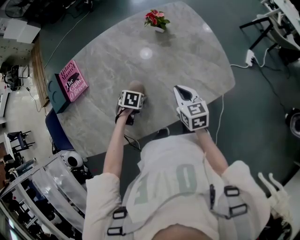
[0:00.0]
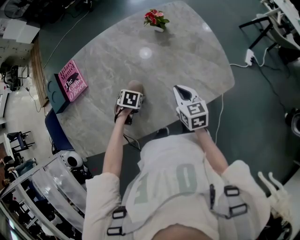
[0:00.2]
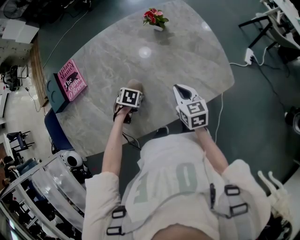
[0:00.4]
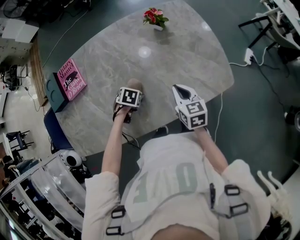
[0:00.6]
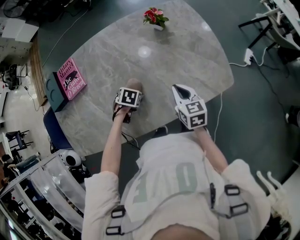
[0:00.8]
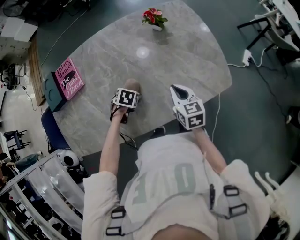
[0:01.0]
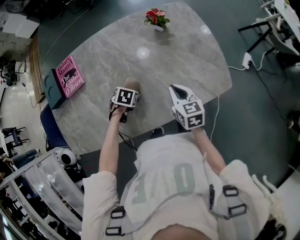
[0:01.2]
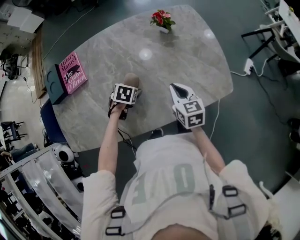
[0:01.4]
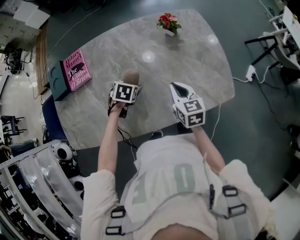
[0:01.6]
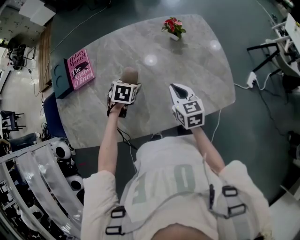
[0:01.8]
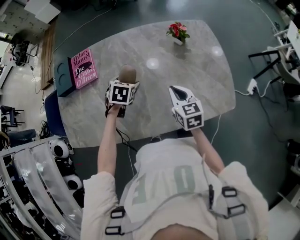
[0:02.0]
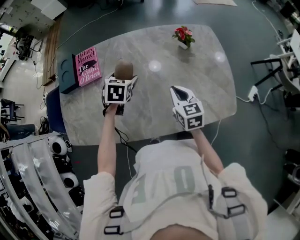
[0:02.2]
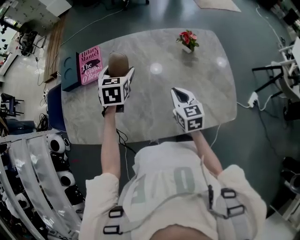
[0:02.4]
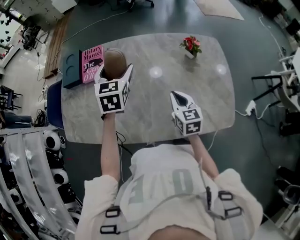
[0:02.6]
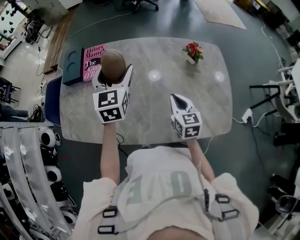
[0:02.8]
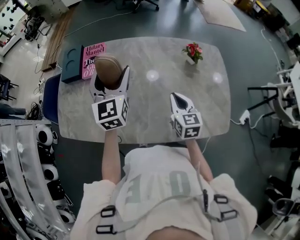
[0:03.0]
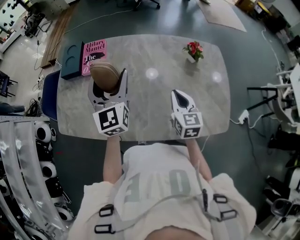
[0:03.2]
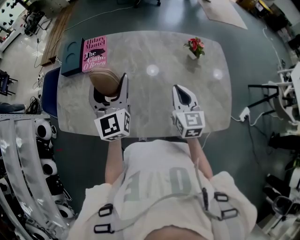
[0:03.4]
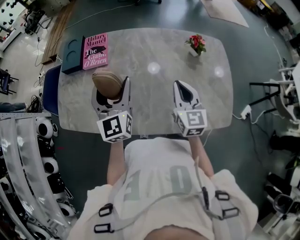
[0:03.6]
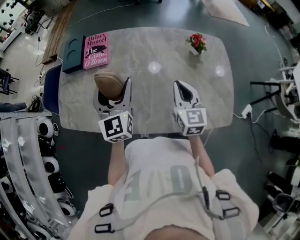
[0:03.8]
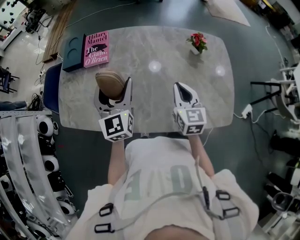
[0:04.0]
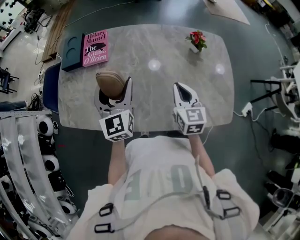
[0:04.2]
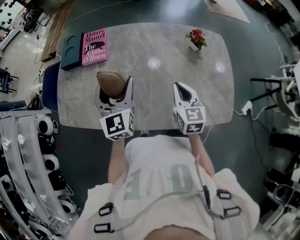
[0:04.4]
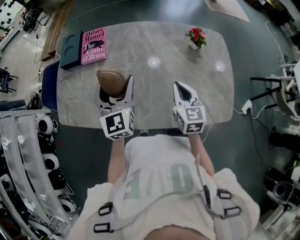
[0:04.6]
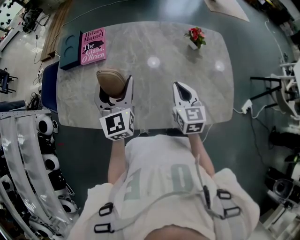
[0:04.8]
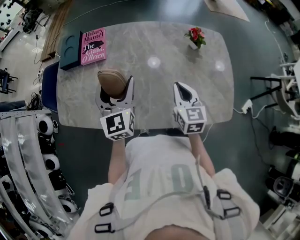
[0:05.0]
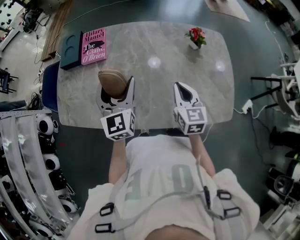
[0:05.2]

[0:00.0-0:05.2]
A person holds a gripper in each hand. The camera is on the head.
0:00.0 to 0:01.8: The left gripper moves upward, about 10 cm. Meanwhile the right gripper changes place by approximately 5 cm.
0:01.8 to 0:03.4: The left gripper goes some 25 cm upward and to the left, and angles its fingers upward, by some 60 degrees; the right gripper moves upward, some 10 cm.
0:03.4 to 0:05.2: The left gripper shifts by some 5 cm.

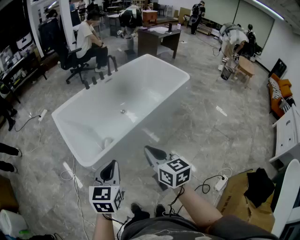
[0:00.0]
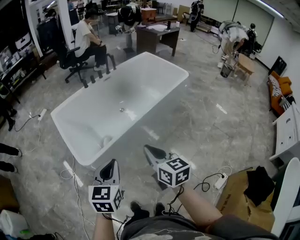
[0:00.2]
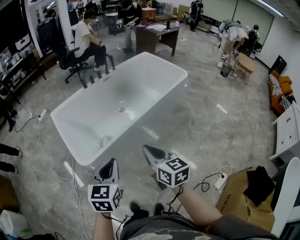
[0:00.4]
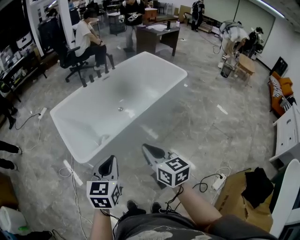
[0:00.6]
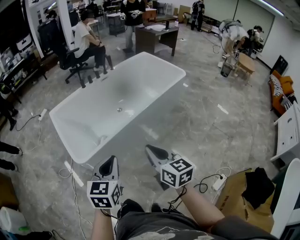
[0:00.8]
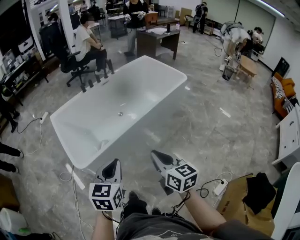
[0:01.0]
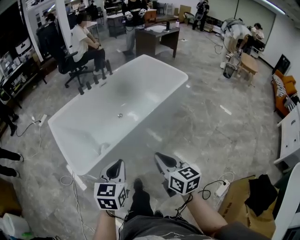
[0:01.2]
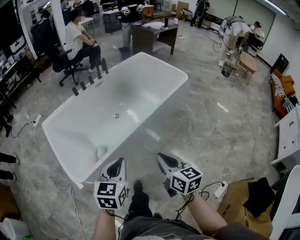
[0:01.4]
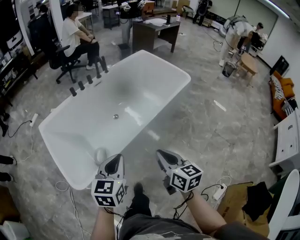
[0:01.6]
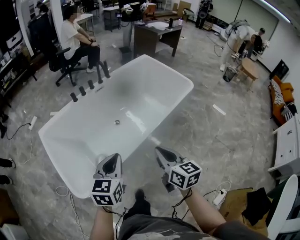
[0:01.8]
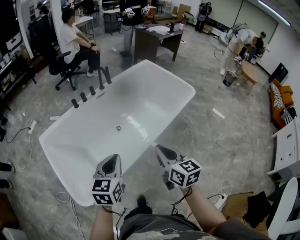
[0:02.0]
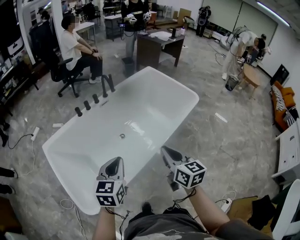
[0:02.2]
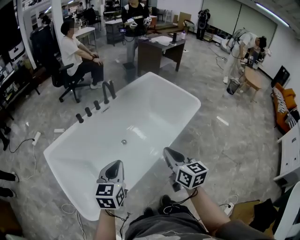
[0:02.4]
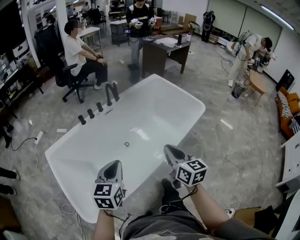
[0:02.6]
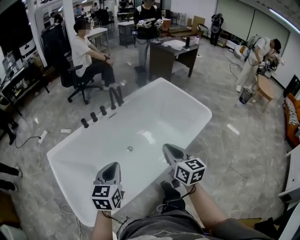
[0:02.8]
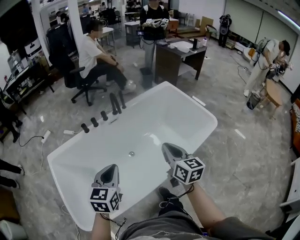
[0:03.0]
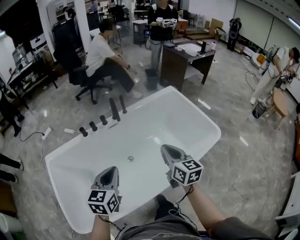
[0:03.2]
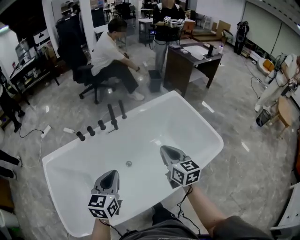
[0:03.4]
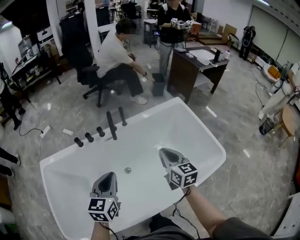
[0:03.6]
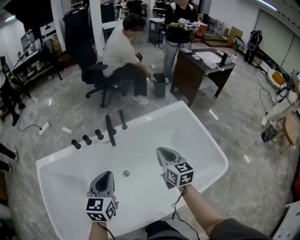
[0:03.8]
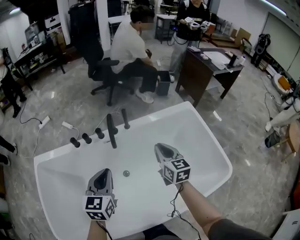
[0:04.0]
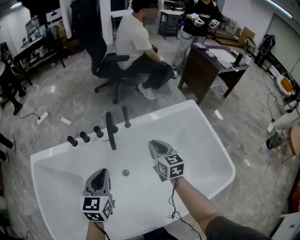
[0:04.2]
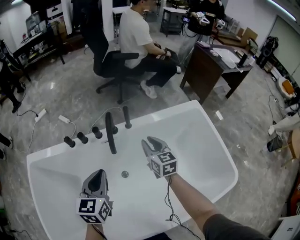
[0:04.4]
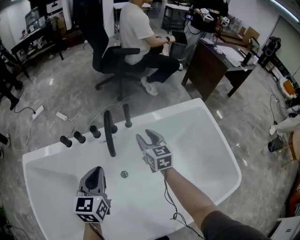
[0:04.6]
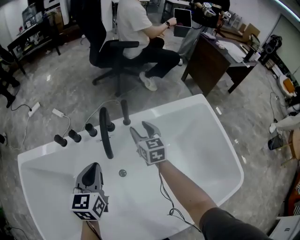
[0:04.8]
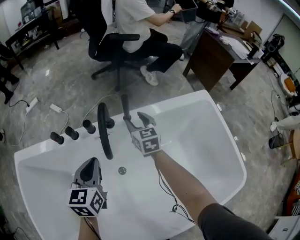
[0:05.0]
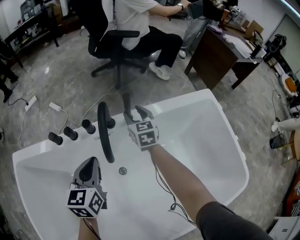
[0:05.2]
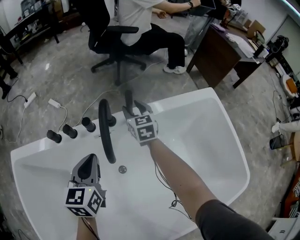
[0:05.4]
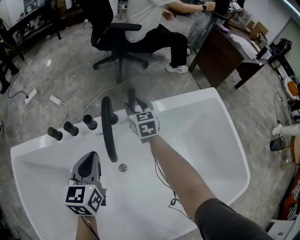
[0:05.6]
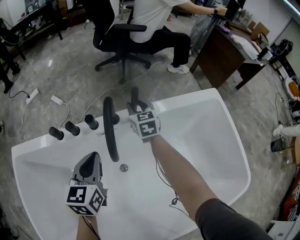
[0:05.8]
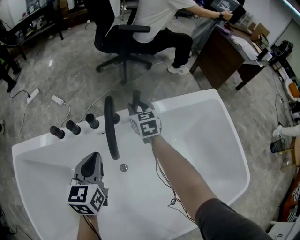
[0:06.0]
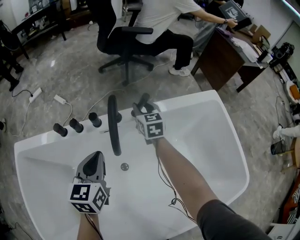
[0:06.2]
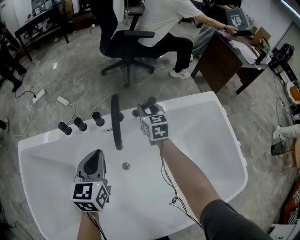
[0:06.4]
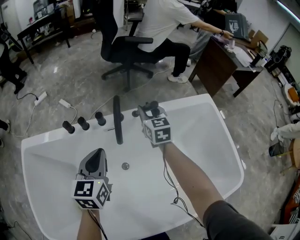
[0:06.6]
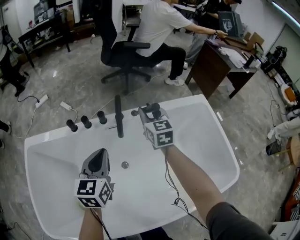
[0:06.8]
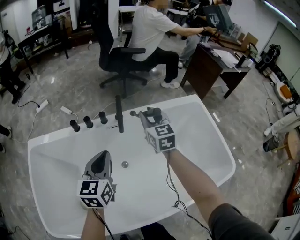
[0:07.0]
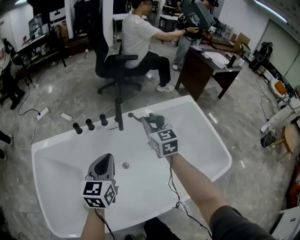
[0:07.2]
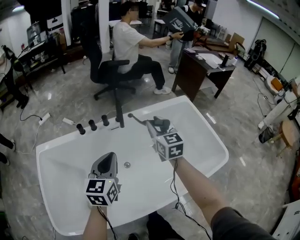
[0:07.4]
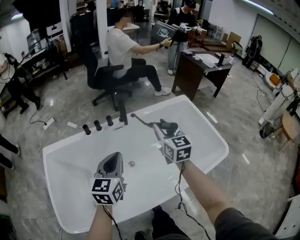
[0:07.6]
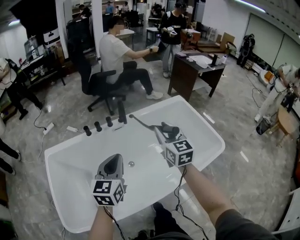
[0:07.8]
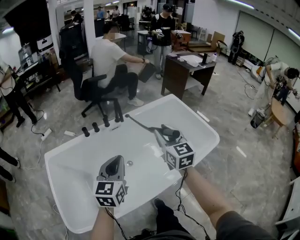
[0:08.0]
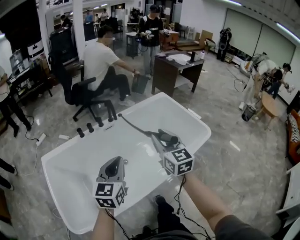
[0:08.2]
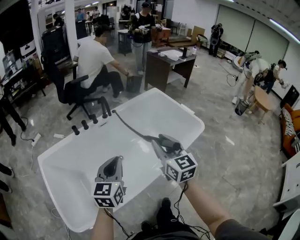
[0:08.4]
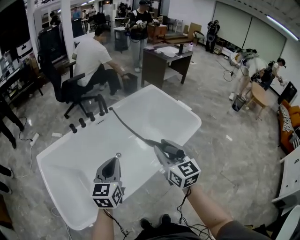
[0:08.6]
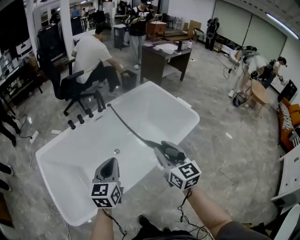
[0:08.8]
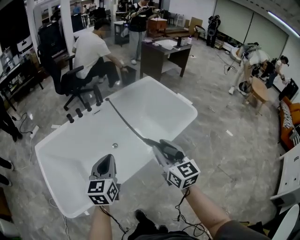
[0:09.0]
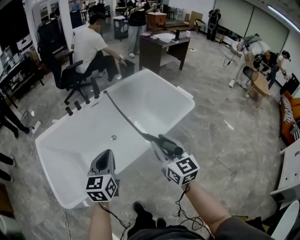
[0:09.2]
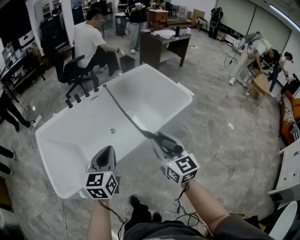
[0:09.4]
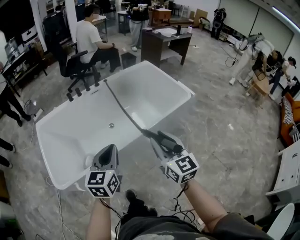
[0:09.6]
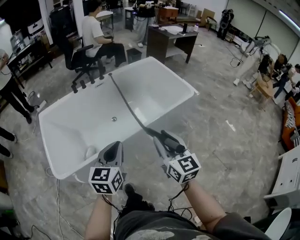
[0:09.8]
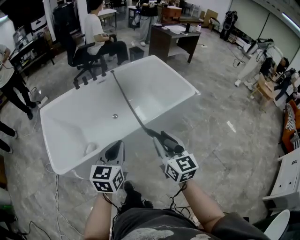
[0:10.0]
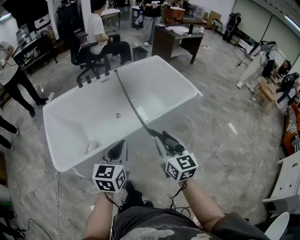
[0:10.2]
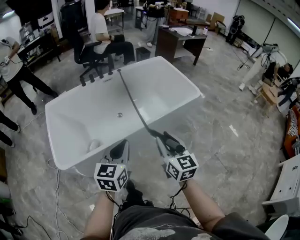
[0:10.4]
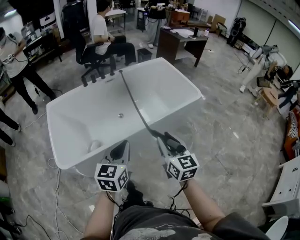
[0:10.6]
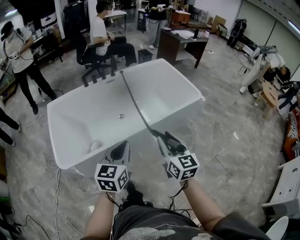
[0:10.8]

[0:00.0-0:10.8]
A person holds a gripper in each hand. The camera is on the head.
0:00.0 to 0:01.6: The two grippers go about 25 cm forward and to the right.
0:01.6 to 0:03.0: The grippers both shift forward by about 35 cm.
0:03.0 to 0:04.6: Both grippers travel together forward and downward, some 50 cm. The right gripper turns by roughly 30 degrees, and opens. Meanwhile the left gripper changes its angle by roughly 20 degrees.
0:04.6 to 0:06.2: The right gripper moves forward and downward, some 15 cm. The left gripper is displaced downward and forward by approximately 10 cm.
0:06.2 to 0:07.8: Both grippers travel together backward and upward, approximately 50 cm. The left gripper turns by about 20 degrees.
0:07.8 to 0:09.2: The right gripper goes some 35 cm backward. The left gripper heads backward, covering approximately 25 cm.
0:09.2 to 0:10.8: Both grippers move backward, some 15 cm.

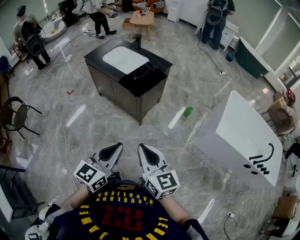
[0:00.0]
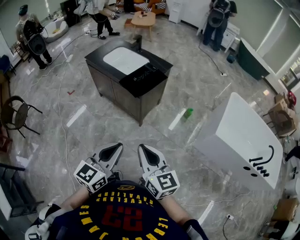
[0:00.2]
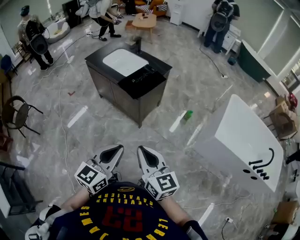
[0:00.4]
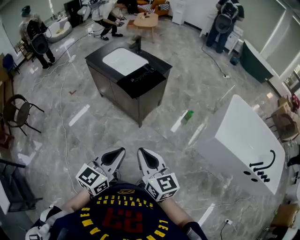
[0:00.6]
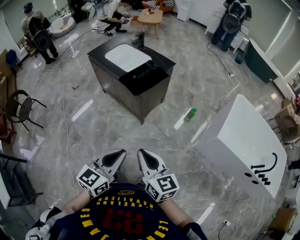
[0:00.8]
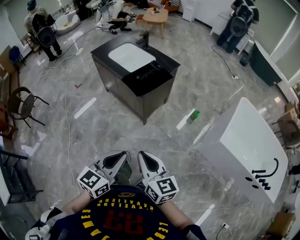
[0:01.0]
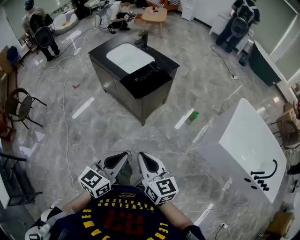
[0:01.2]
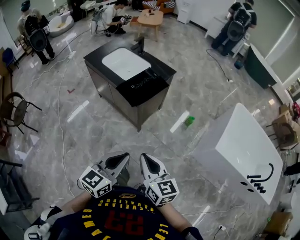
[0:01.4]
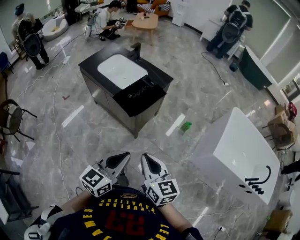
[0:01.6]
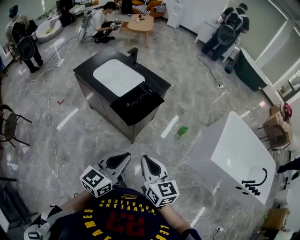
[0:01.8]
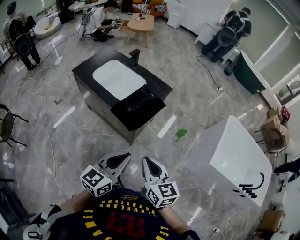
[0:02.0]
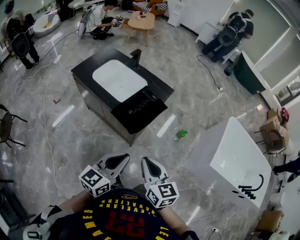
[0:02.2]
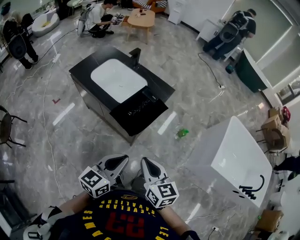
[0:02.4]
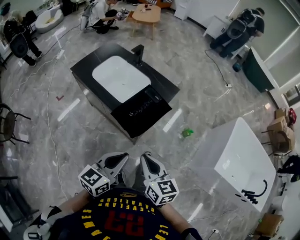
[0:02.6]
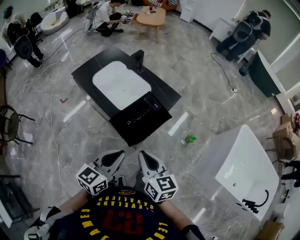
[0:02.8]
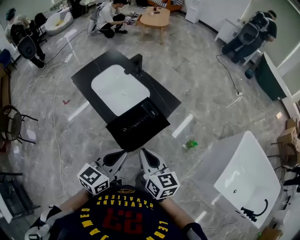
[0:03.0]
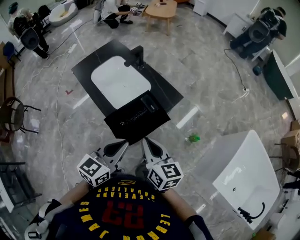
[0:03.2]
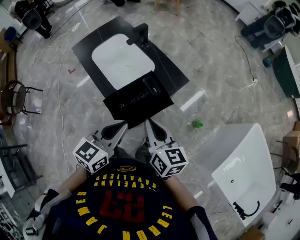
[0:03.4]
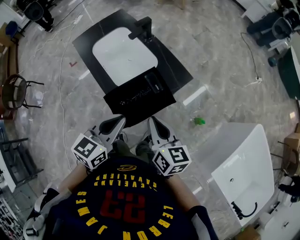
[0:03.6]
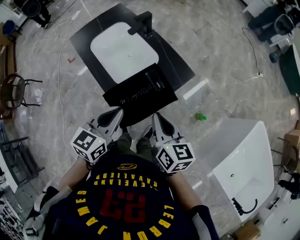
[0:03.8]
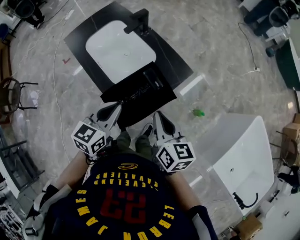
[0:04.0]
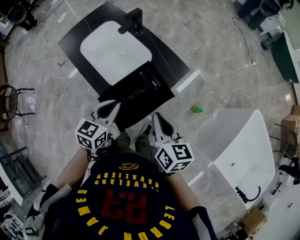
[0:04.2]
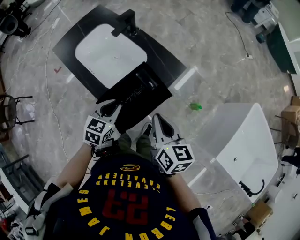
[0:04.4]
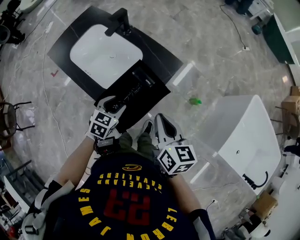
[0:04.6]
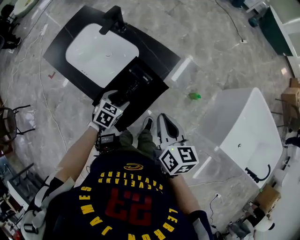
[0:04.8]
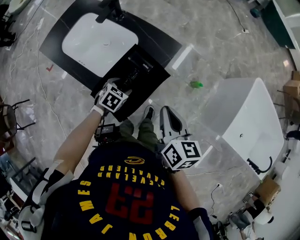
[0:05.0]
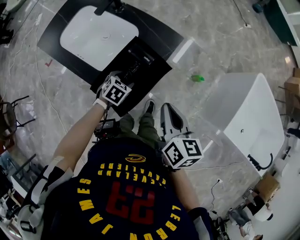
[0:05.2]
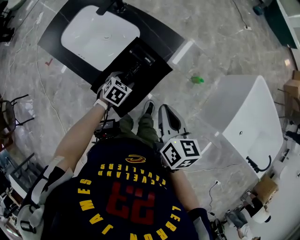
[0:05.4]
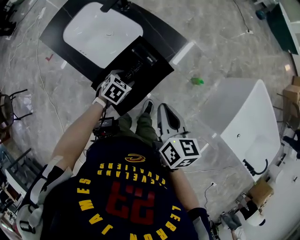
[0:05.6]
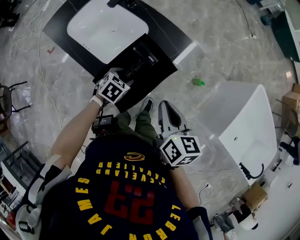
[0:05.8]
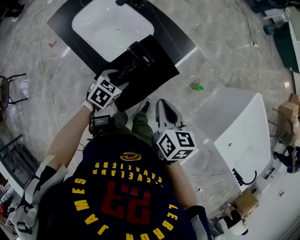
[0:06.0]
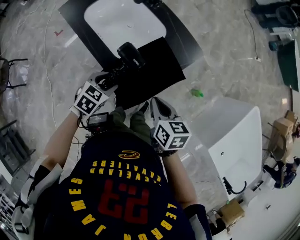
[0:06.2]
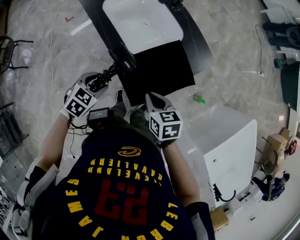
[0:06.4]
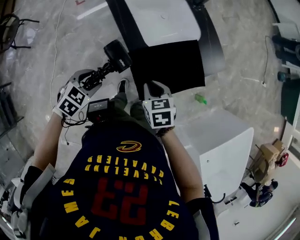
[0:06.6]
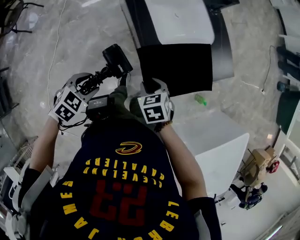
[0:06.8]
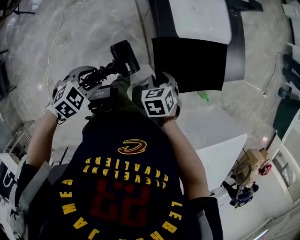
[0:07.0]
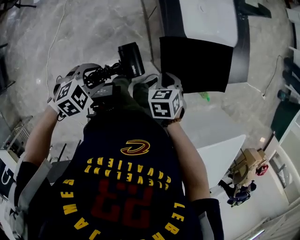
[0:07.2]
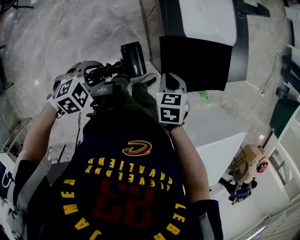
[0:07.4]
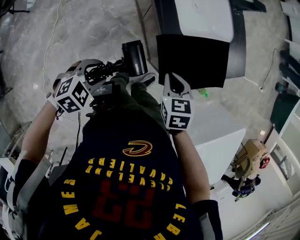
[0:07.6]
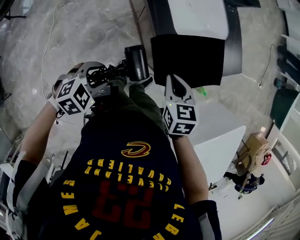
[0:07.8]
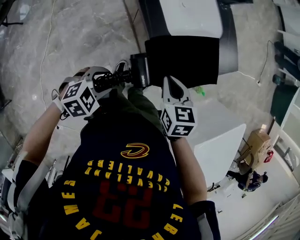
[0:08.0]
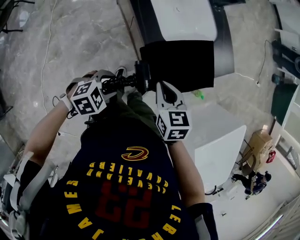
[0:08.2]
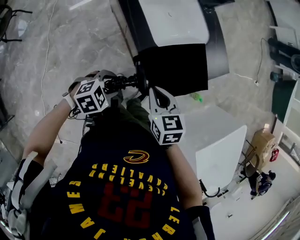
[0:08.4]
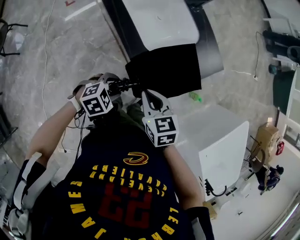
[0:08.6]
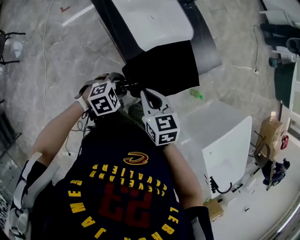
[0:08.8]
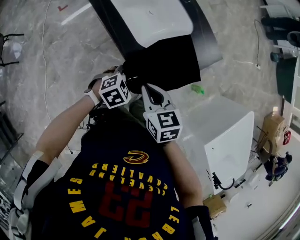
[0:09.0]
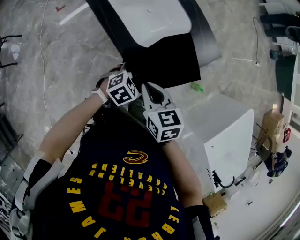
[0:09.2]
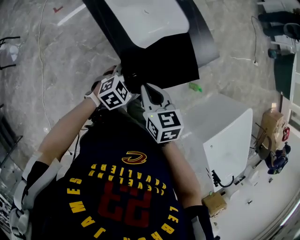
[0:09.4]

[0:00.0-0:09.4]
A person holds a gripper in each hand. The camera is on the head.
0:00.0 to 0:01.6: The two grippers go about 15 cm forward.
0:01.6 to 0:03.2: The grippers both shift forward by about 35 cm.
0:03.2 to 0:04.8: The left gripper moves downward and forward, roughly 30 cm, points its fingers approximately 40 degrees further downward, and opens. The right gripper shifts approximately 10 cm to the right, downward and forward, and turns by some 20 degrees.
0:04.8 to 0:06.2: The right gripper moves downward and to the left, roughly 10 cm, and turns by some 30 degrees; the left gripper shifts roughly 10 cm to the left and backward.
0:06.2 to 0:07.8: The left gripper is displaced backward, to the left and upward by roughly 35 cm; the right gripper heads to the left, backward and upward, covering approximately 20 cm, turns by roughly 30 degrees, and opens and closes again.
0:07.8 to 0:09.4: The right gripper moves approximately 5 cm. Meanwhile the left gripper goes approximately 25 cm forward and to the right.
